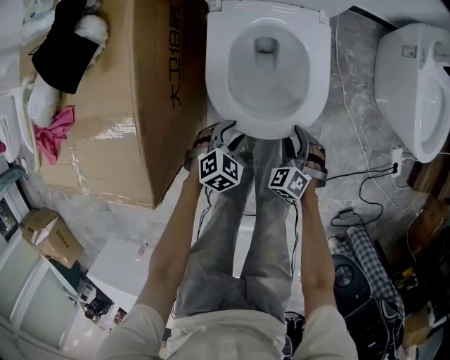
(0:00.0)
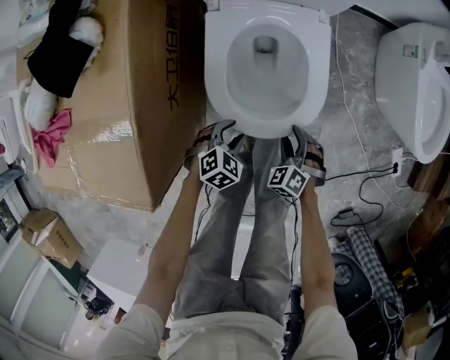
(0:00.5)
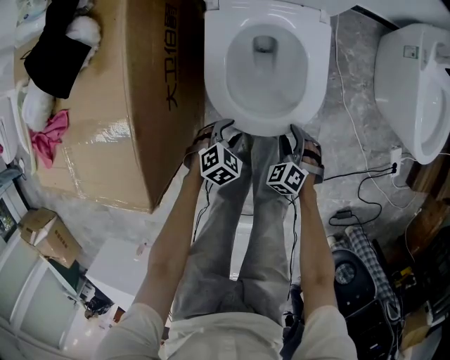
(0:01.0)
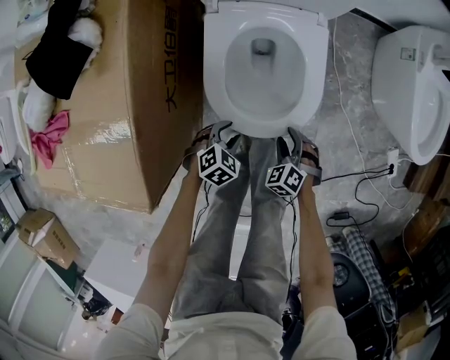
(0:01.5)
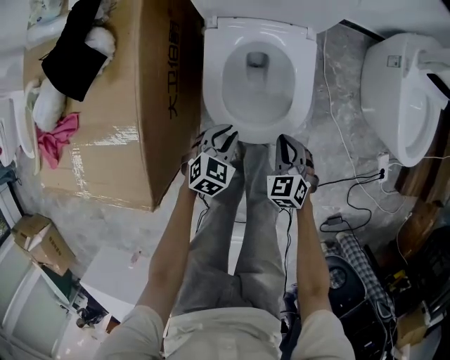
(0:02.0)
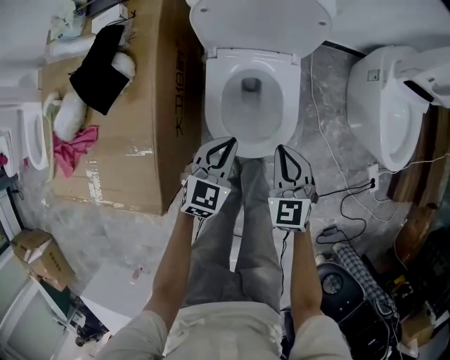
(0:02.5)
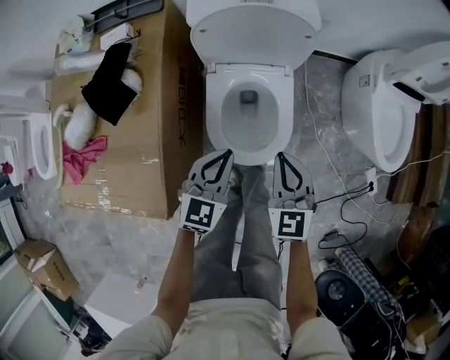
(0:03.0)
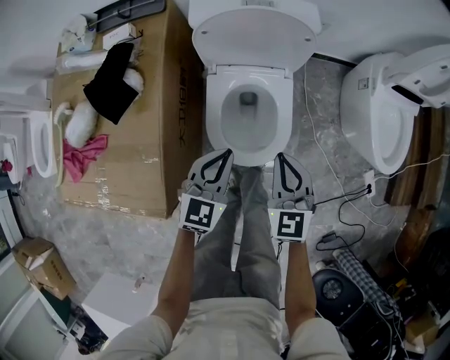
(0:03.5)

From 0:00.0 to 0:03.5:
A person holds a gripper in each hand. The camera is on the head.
From 0:00.0 to 0:02.0: Both grippers move upward, approximately 5 cm. The left gripper closes its fingers, while the right gripper closes.
From 0:02.0 to 0:03.5: Both grippers travel together upward, approximately 25 cm. The left gripper swivels roughly 30 degrees. The right gripper changes its angle by roughly 30 degrees.

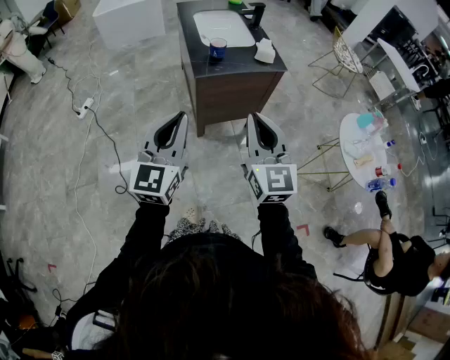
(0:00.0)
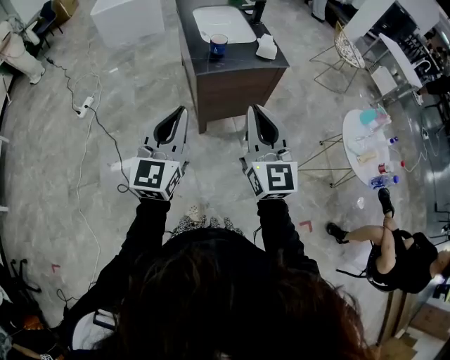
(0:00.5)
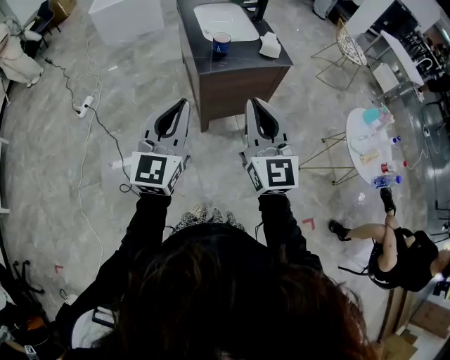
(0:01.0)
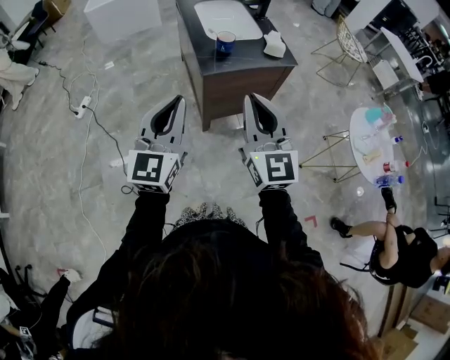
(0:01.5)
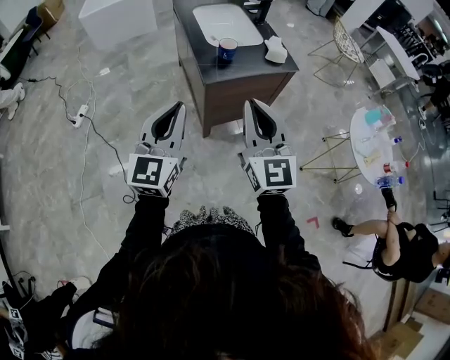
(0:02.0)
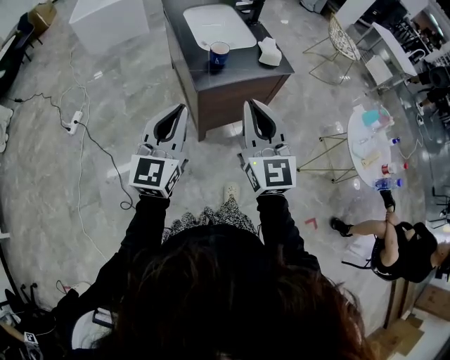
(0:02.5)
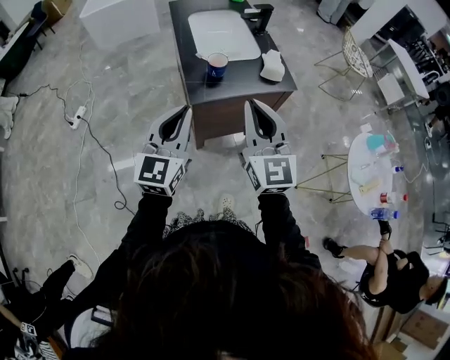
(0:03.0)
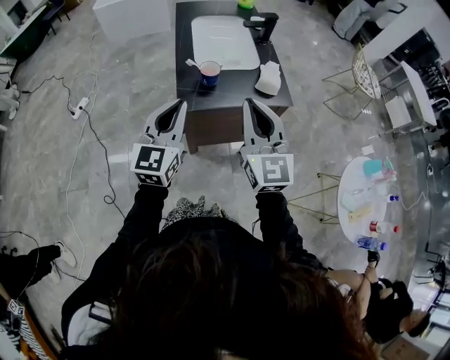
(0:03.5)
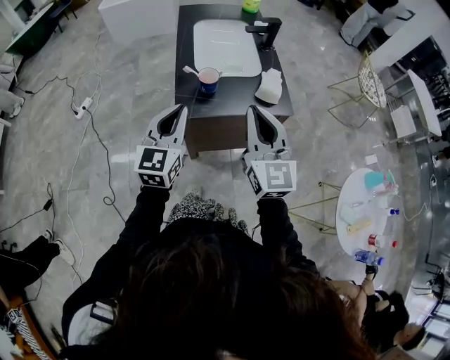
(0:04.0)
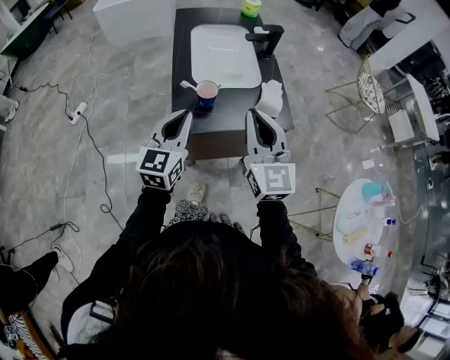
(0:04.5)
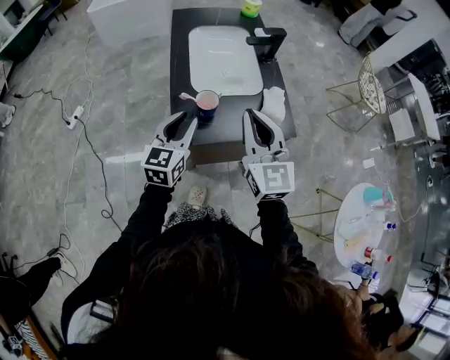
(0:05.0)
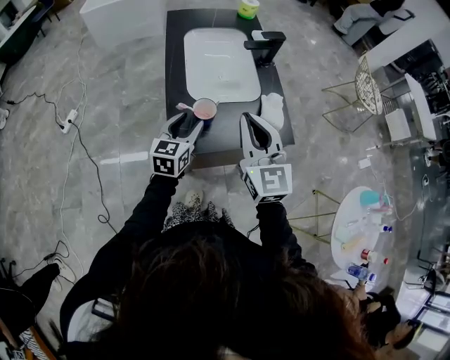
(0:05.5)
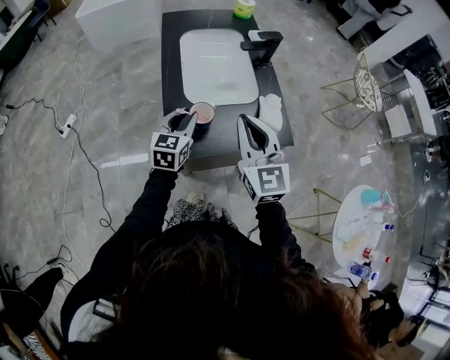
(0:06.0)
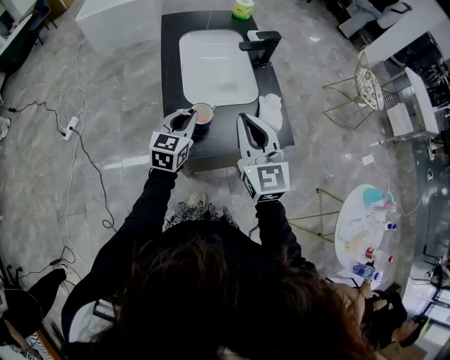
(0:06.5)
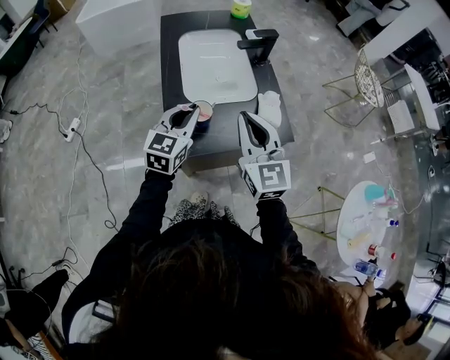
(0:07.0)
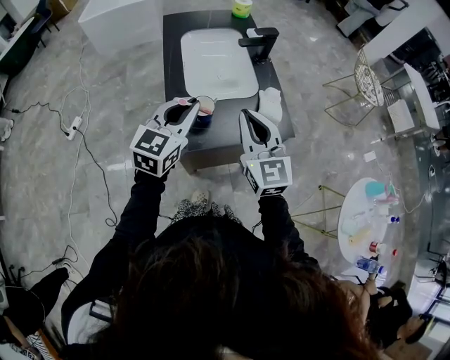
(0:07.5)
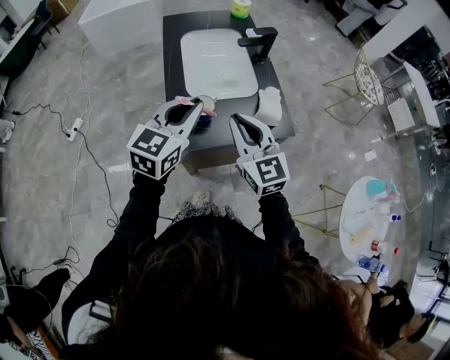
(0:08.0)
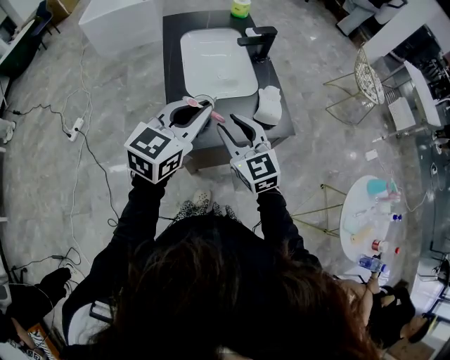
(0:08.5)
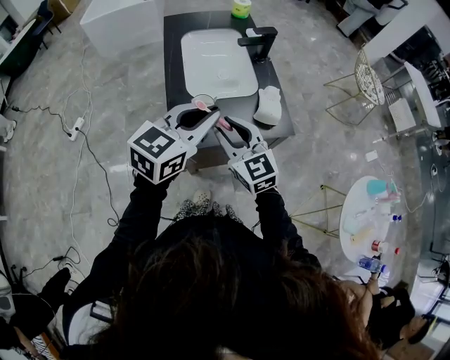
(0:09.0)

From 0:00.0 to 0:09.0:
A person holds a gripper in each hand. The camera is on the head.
From 0:00.0 to 0:02.0: The left gripper heads forward and to the left, covering roughly 15 cm, while the right gripper goes about 10 cm to the left and forward.
From 0:02.0 to 0:04.5: Both grippers move forward and to the right, approximately 30 cm.
From 0:04.5 to 0:07.0: The grippers both shift forward by approximately 10 cm. The left gripper opens, then closes once more.
From 0:07.0 to 0:09.0: The left gripper heads upward, backward and to the right, covering some 15 cm; the right gripper heads downward, covering about 5 cm, and opens up.

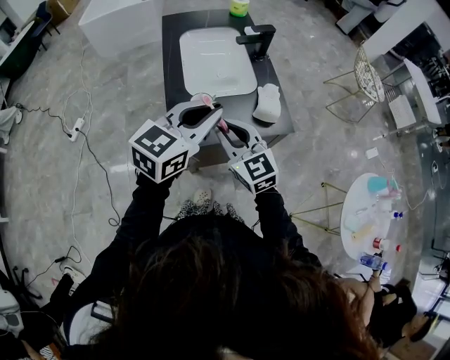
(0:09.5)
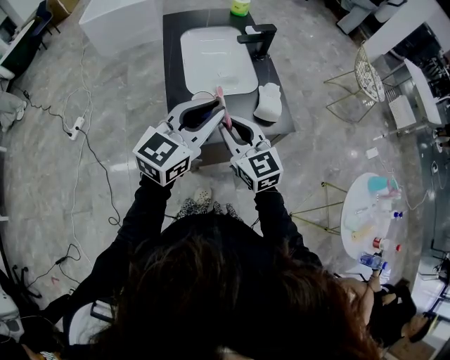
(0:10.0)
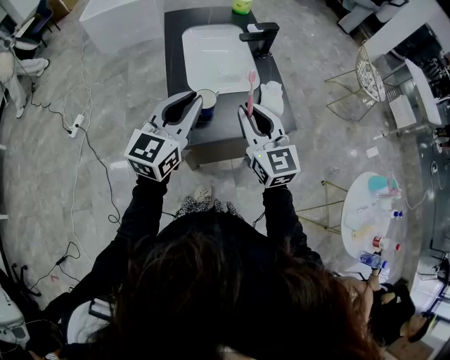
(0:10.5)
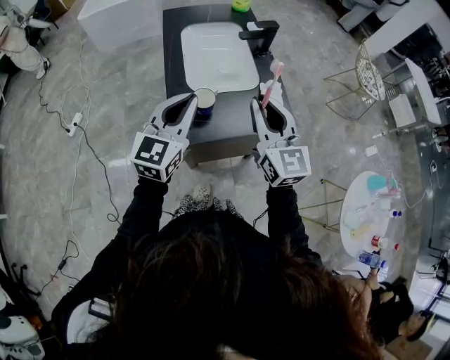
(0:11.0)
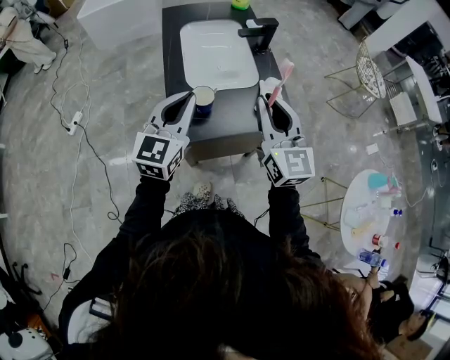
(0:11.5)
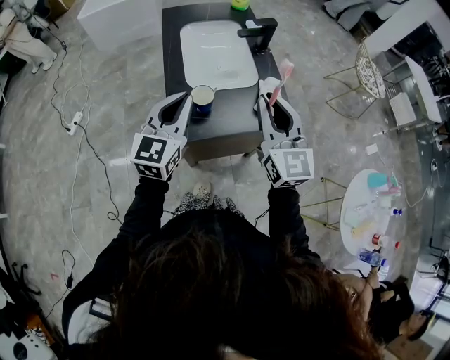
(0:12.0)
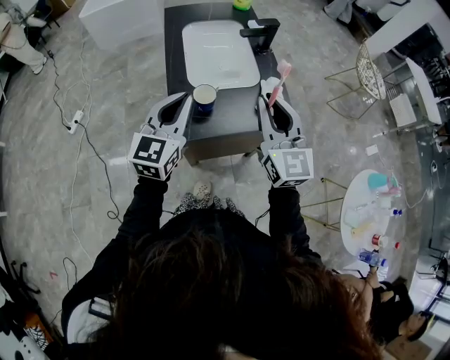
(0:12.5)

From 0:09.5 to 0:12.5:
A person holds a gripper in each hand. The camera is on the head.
From 0:09.5 to 0:11.0: The right gripper shifts roughly 10 cm upward and to the right, and changes its angle by about 20 degrees. The left gripper moves to the left, roughly 5 cm, and swivels approximately 20 degrees.
From 0:11.0 to 0:12.5: The grippers stay close to where they were, moving slightly.

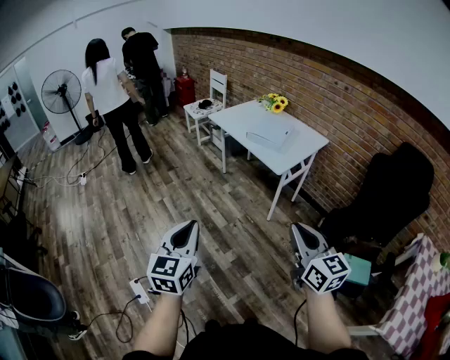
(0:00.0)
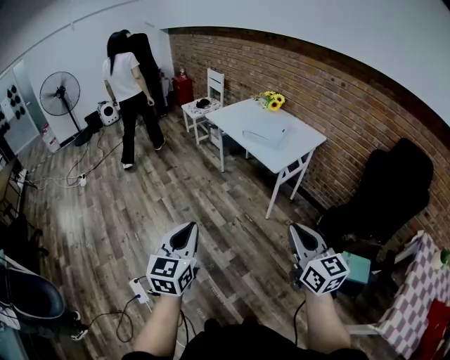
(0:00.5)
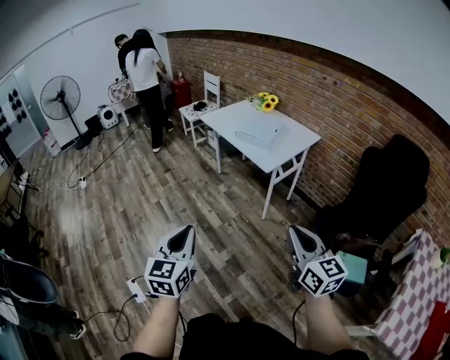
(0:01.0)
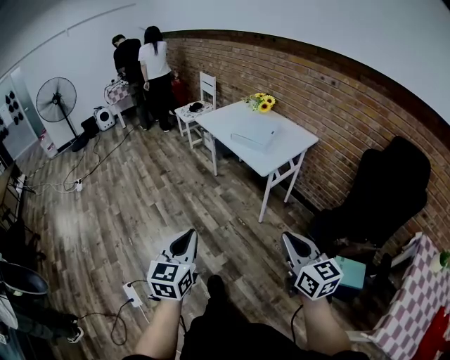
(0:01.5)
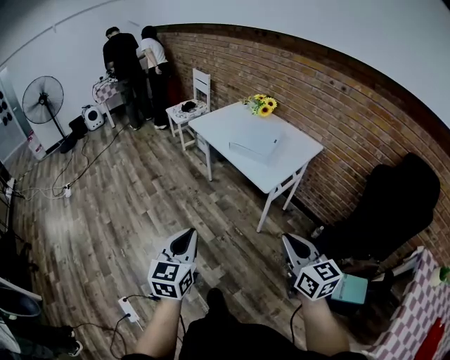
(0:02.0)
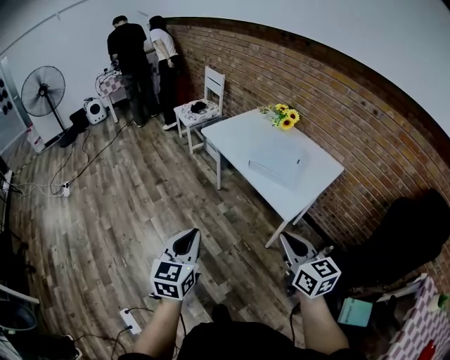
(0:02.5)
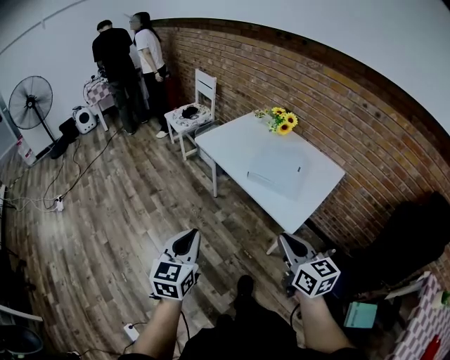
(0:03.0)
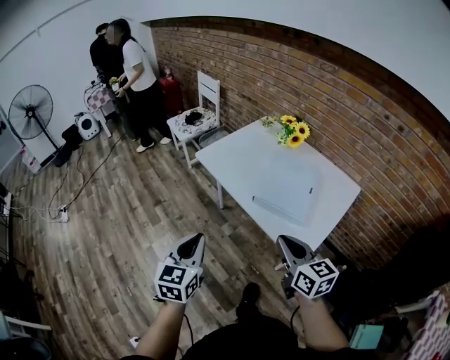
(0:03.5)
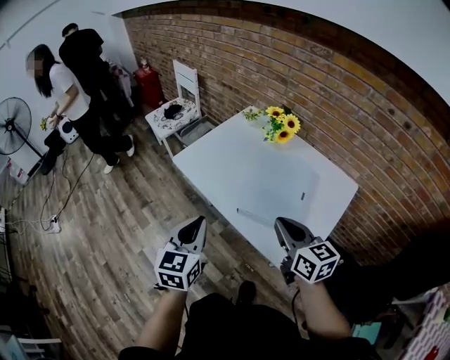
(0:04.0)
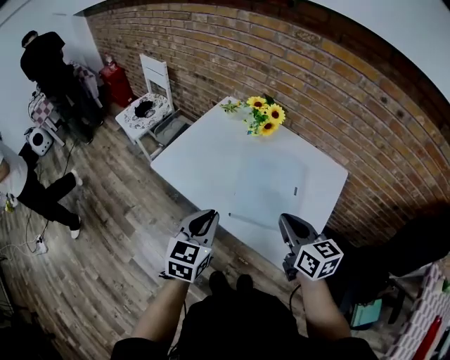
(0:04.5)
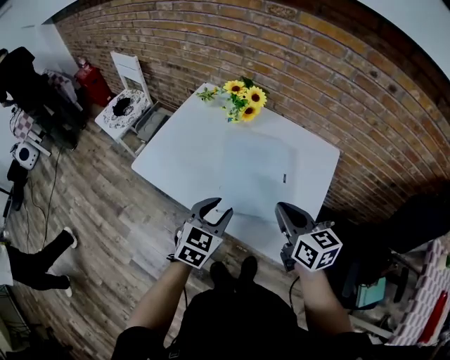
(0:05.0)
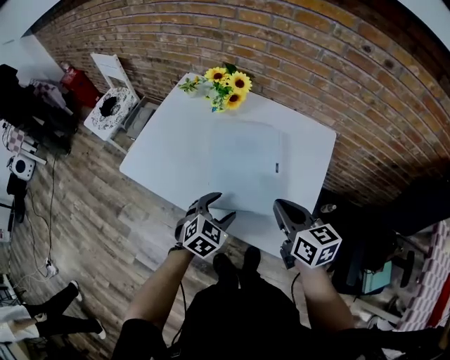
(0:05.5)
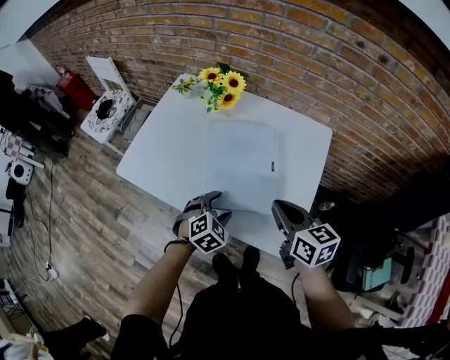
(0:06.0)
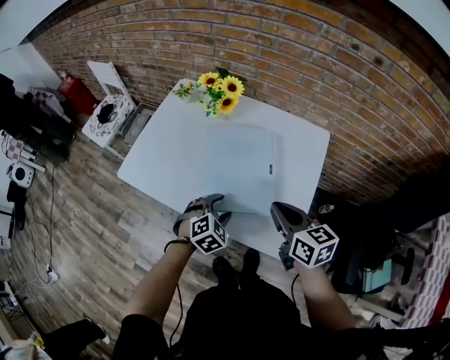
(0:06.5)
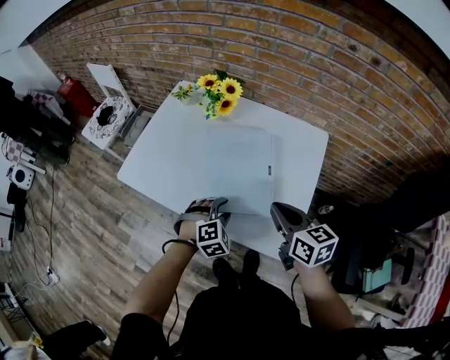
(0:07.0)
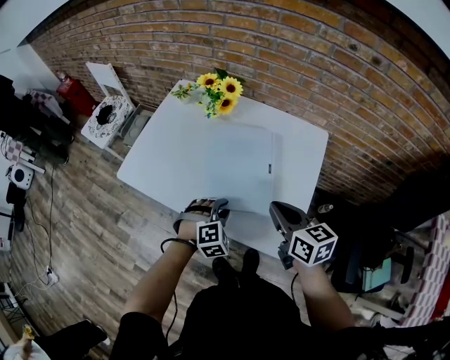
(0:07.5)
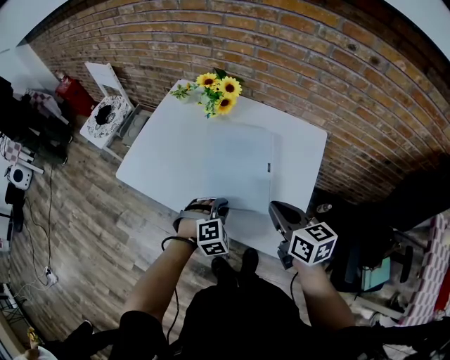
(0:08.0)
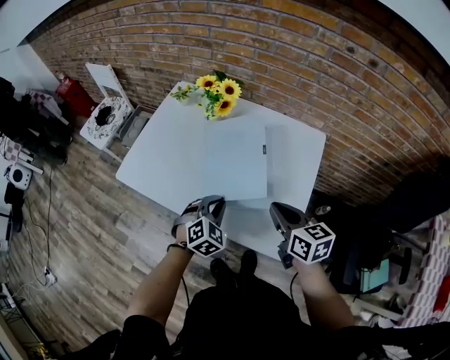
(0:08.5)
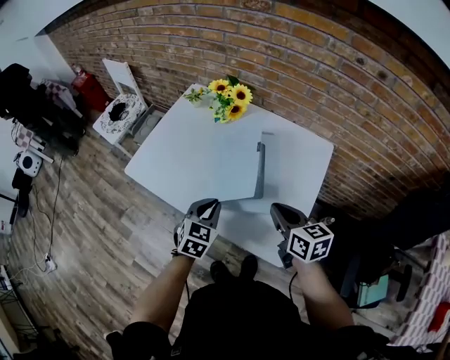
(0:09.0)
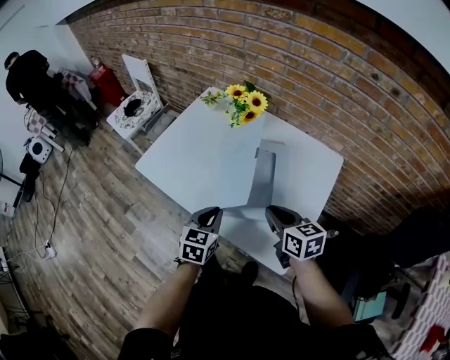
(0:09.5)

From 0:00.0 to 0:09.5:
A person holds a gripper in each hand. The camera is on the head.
From 0:00.0 to 0:02.0: The left gripper moves forward and to the right, some 15 cm. The right gripper goes about 15 cm forward, downward and to the right.
From 0:02.0 to 0:04.0: The pair of grippers is taken forward, roughly 50 cm.
From 0:04.0 to 0:05.5: The right gripper changes place by some 10 cm, and turns by some 20 degrees; the left gripper shifts by about 25 cm, rotates some 60 degrees, and opens.
From 0:05.5 to 0:07.5: The left gripper rotates roughly 40 degrees, and closes.
From 0:07.5 to 0:09.5: The right gripper shifts by approximately 5 cm, while the left gripper goes roughly 10 cm upward and to the left, and twists approximately 70 degrees counterclockwise, seen from behind.

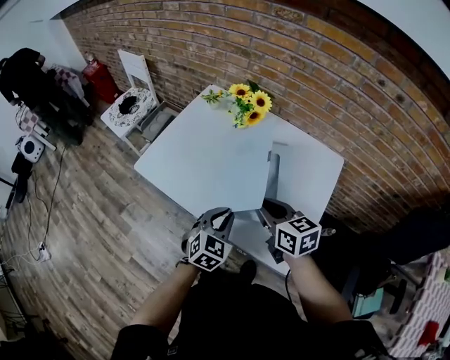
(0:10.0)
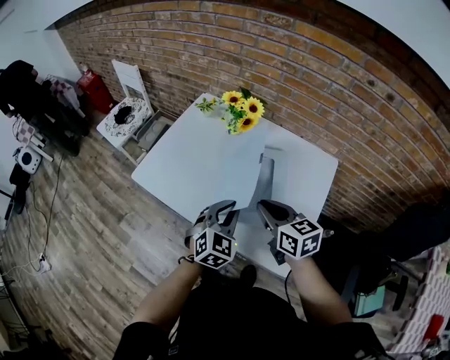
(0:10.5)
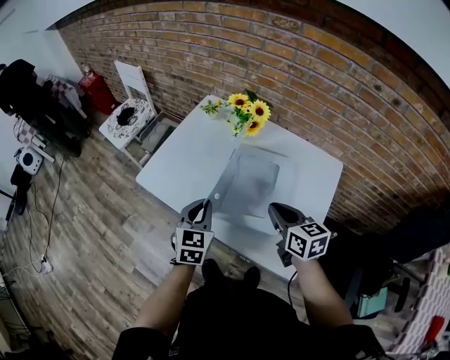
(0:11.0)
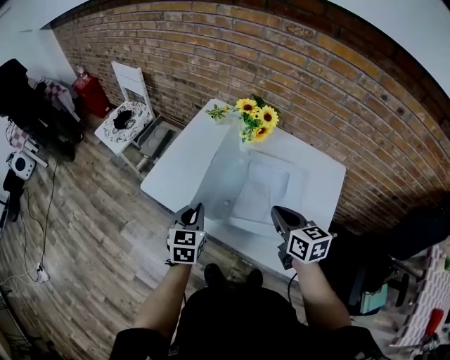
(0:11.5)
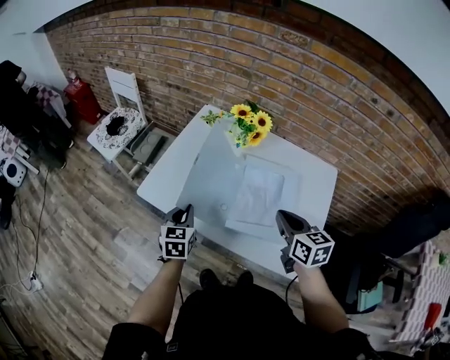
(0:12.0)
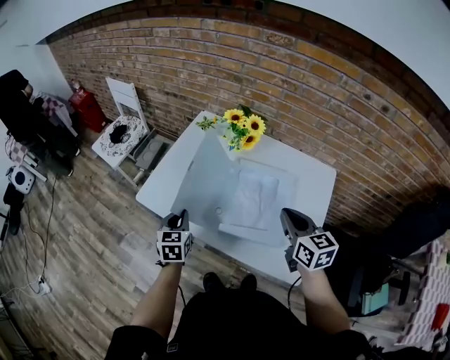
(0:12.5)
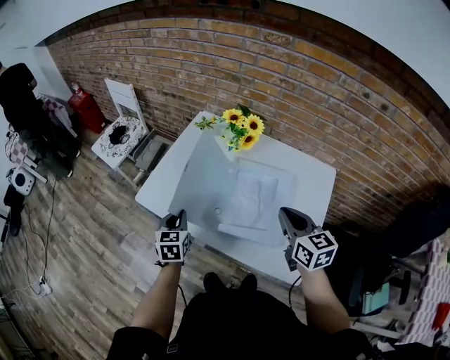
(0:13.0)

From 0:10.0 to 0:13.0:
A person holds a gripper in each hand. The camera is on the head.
From 0:10.0 to 0:11.5: The left gripper goes roughly 20 cm to the left and forward, and swivels roughly 30 degrees.
From 0:11.5 to 0:13.0: The right gripper heads to the right, covering roughly 5 cm.
